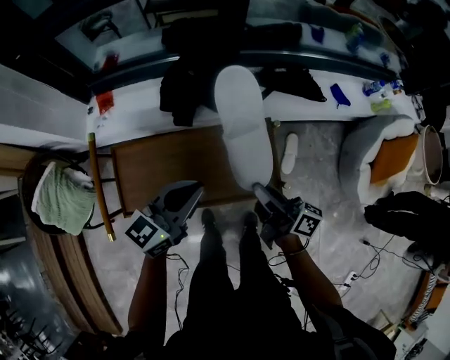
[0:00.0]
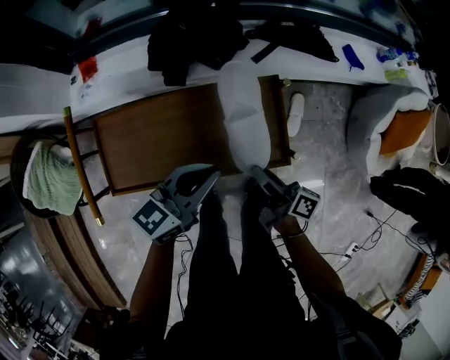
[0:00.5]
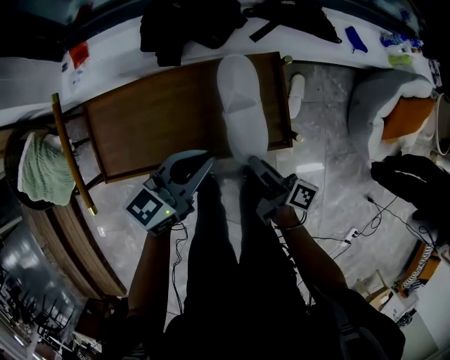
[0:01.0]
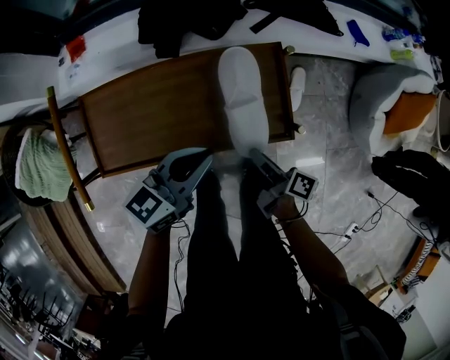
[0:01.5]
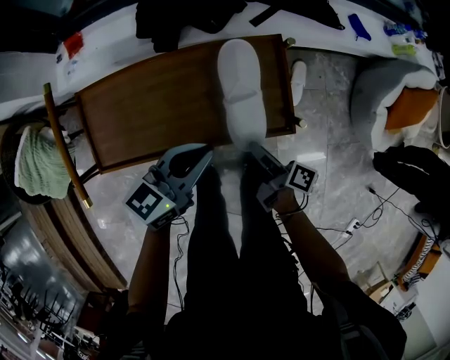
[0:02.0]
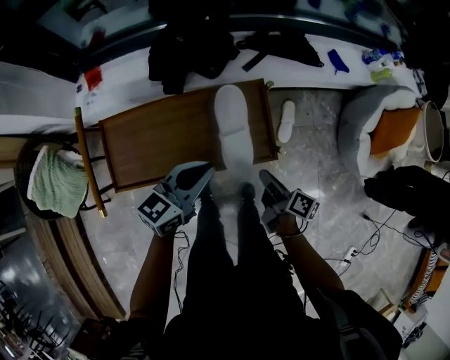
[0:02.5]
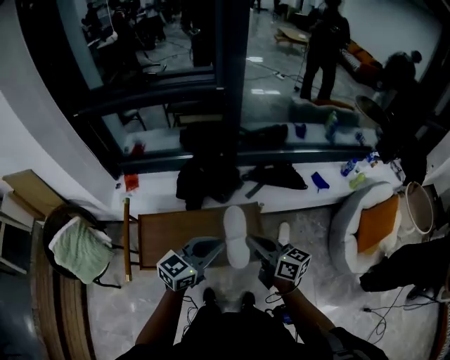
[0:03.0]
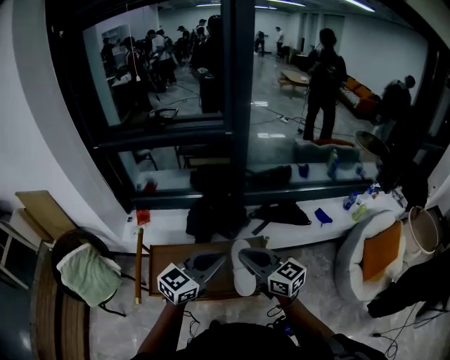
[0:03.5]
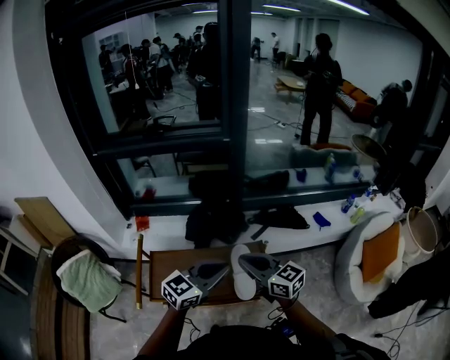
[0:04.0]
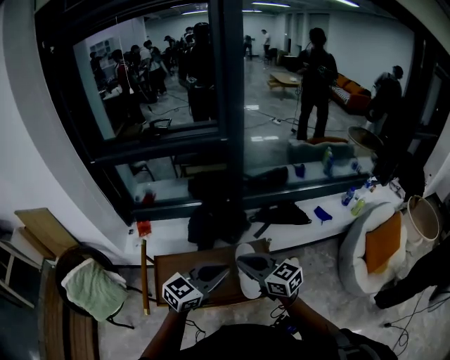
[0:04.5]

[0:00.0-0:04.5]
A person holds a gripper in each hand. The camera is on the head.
0:00.0 to 0:02.0: The right gripper is displaced downward by about 20 cm, and swivels some 30 degrees. The left gripper moves downward, approximately 10 cm.
0:02.0 to 0:04.5: Both grippers travel together upward, some 35 cm. The left gripper rotates roughly 30 degrees. Meanwhile the right gripper rotates around the line of its fingers by approximately 80 degrees, counterclockwise from behind.

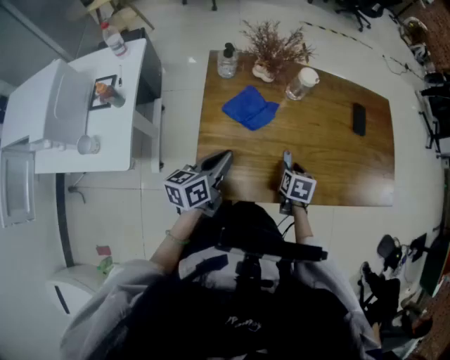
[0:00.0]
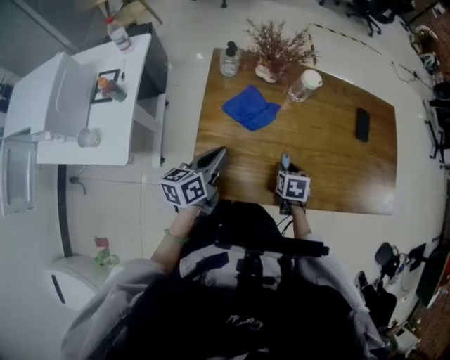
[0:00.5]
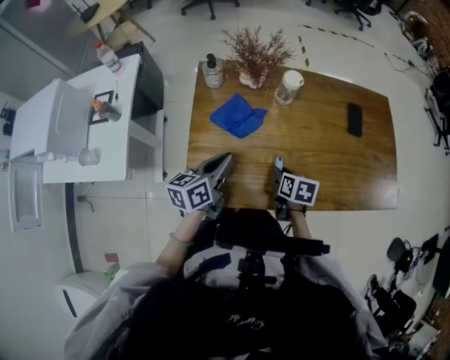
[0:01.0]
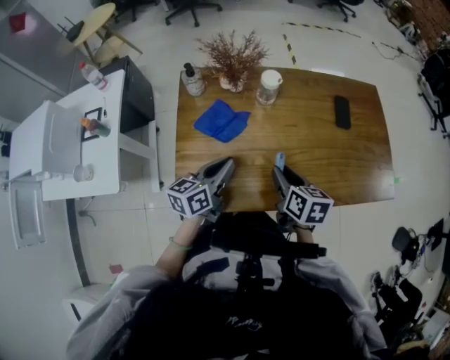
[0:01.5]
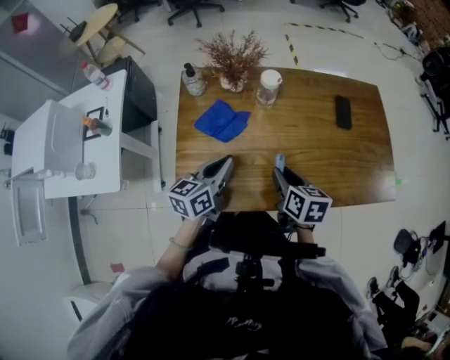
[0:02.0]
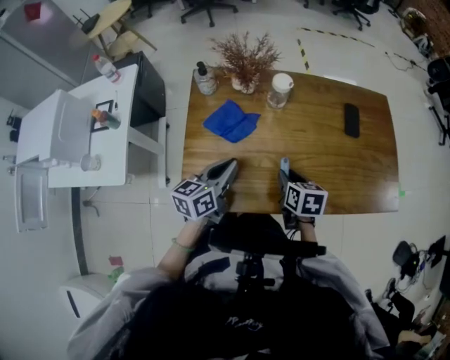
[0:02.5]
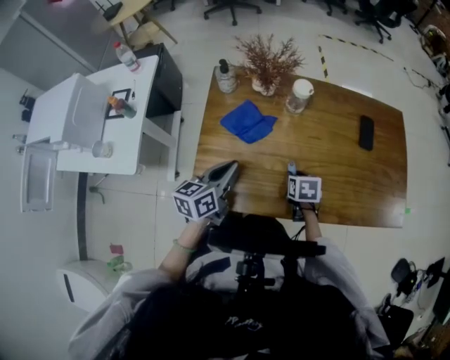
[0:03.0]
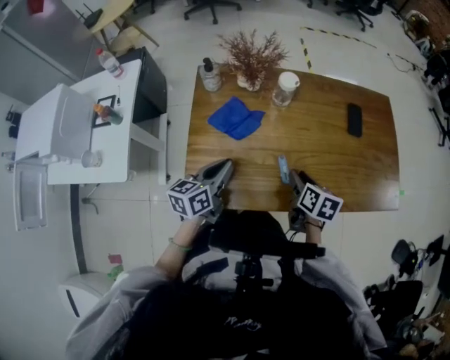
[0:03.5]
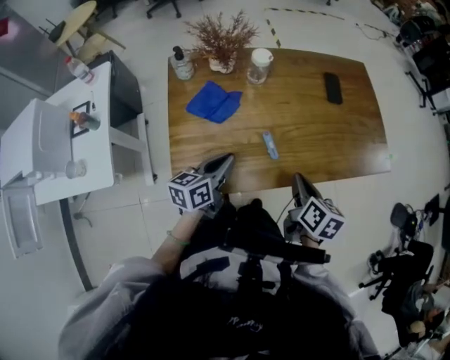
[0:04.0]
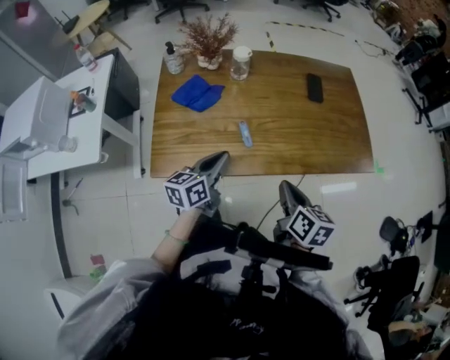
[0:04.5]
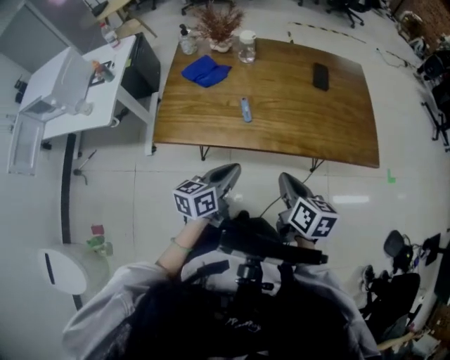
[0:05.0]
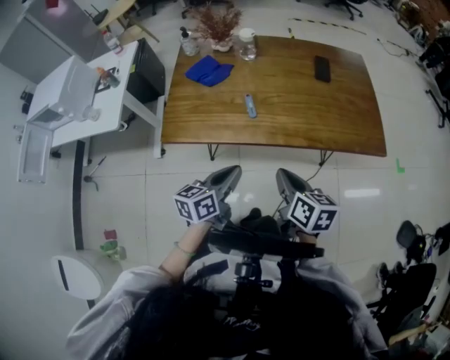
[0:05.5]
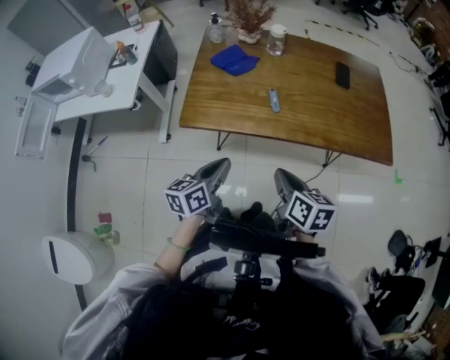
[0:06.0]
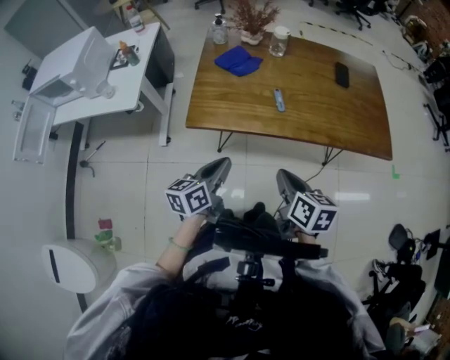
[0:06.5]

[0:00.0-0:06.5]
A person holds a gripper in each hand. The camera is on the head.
0:00.0 to 0:02.0: The right gripper shifts about 10 cm upward, and turns by some 30 degrees. The left gripper heads to the right, covering about 10 cm.
0:02.0 to 0:04.5: Both grippers move backward and to the right, about 15 cm. The right gripper closes up.
0:04.5 to 0:06.5: Both grippers move backward and to the left, roughly 20 cm.

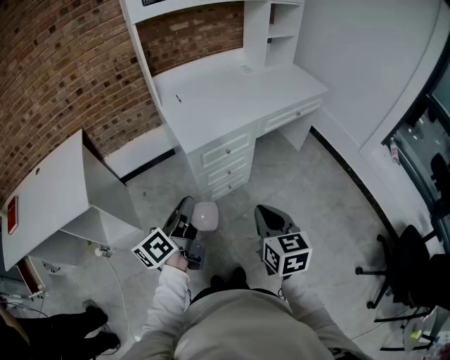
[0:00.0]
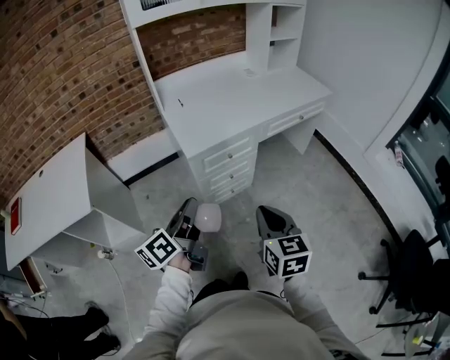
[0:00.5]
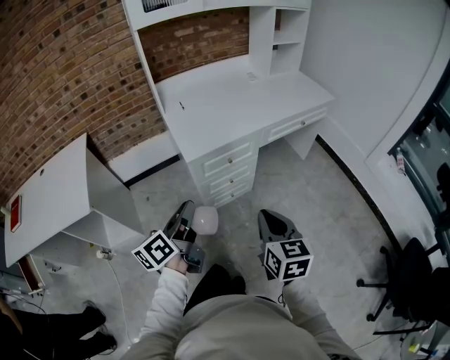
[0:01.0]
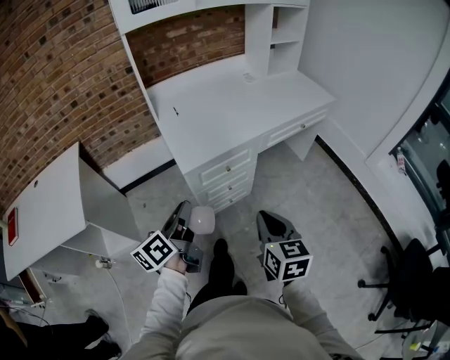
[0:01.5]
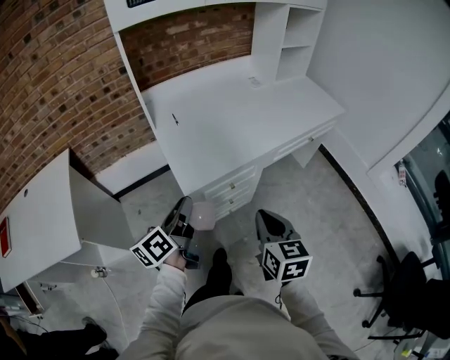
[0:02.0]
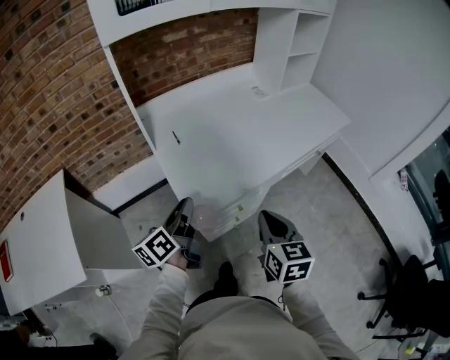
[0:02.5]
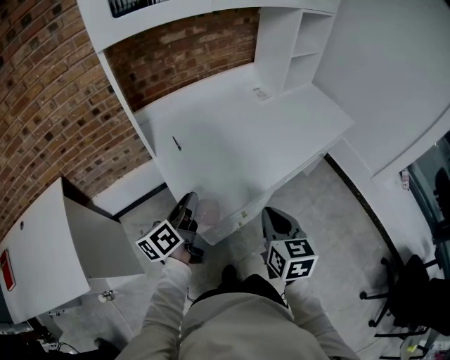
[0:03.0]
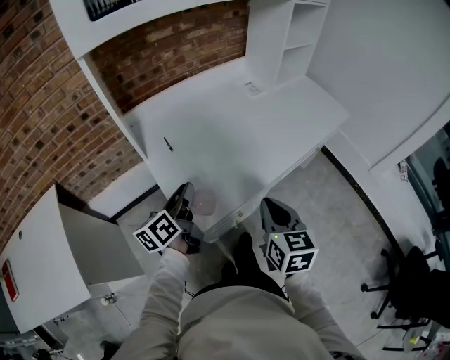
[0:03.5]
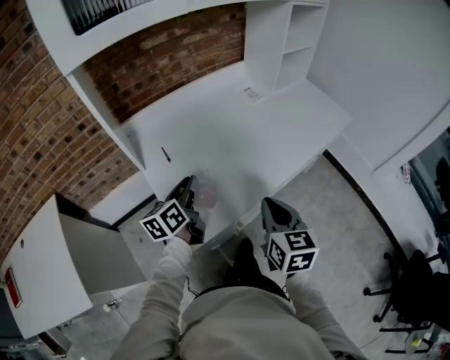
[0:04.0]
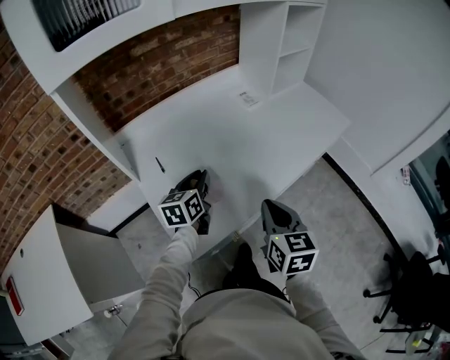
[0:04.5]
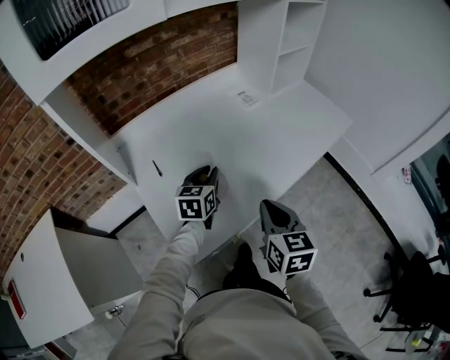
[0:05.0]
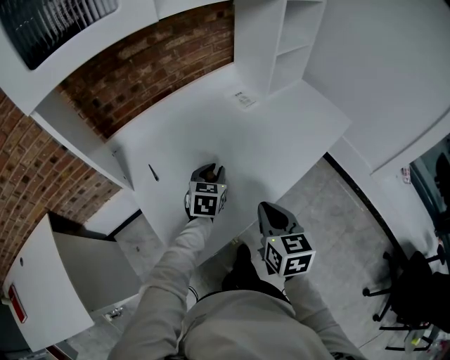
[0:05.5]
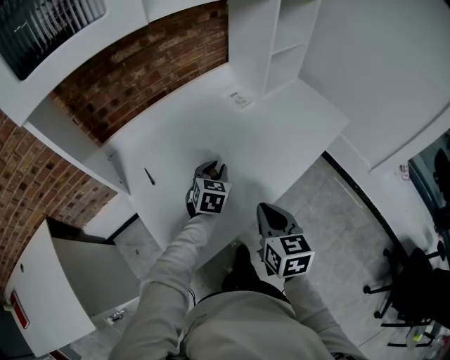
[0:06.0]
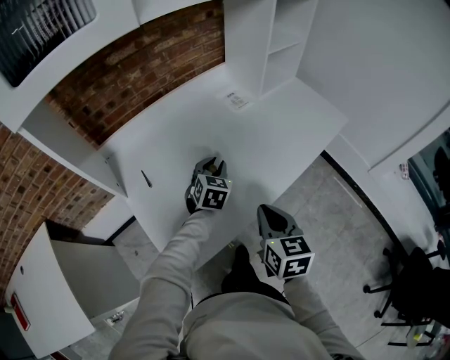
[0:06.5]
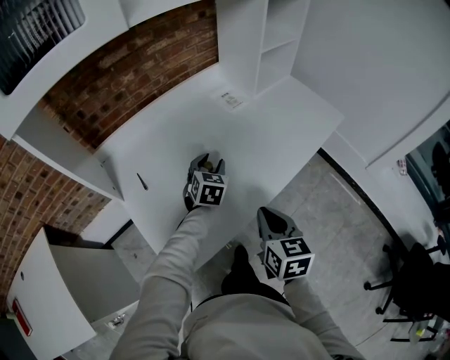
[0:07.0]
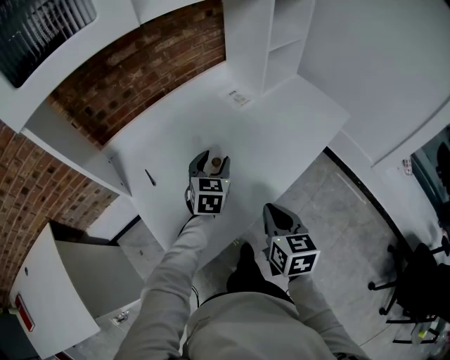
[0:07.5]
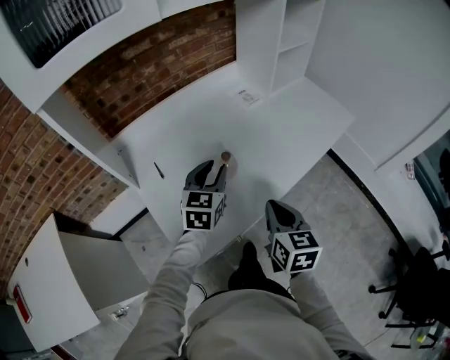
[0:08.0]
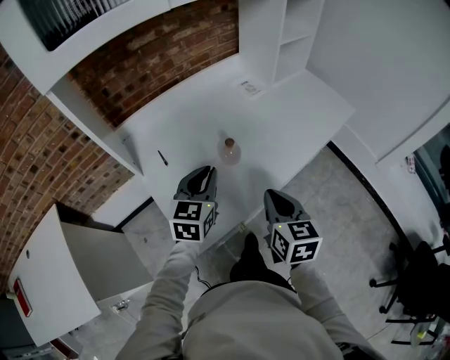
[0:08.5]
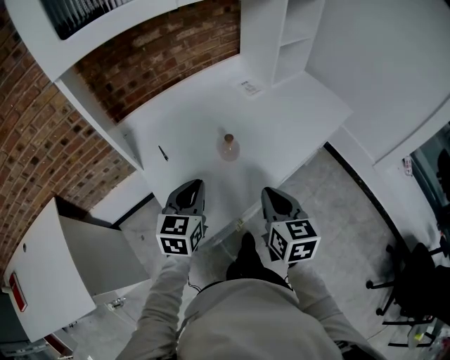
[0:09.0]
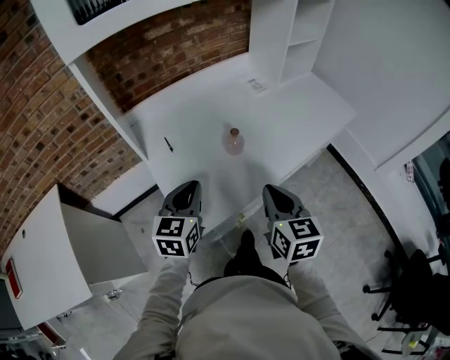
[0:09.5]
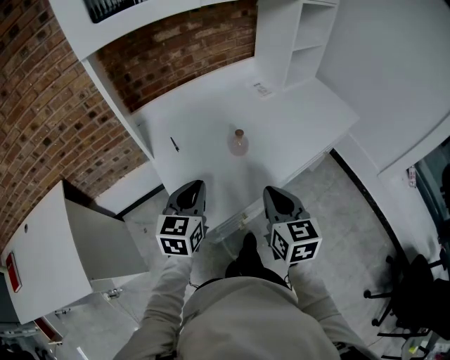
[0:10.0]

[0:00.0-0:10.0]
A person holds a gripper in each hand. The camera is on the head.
0:00.0 to 0:02.0: The grippers both shift forward by approximately 20 cm.
0:02.0 to 0:04.0: Both grippers move forward, about 25 cm.
0:04.0 to 0:06.0: The right gripper moves forward, about 10 cm; the left gripper shifts some 25 cm forward, to the right and downward, and twists approximately 50 degrees clockwise, seen from behind.
0:06.0 to 0:08.0: The left gripper heads upward and backward, covering approximately 10 cm.
0:08.0 to 0:10.0: The left gripper goes about 20 cm backward and to the left, and closes up. The right gripper goes some 5 cm backward.

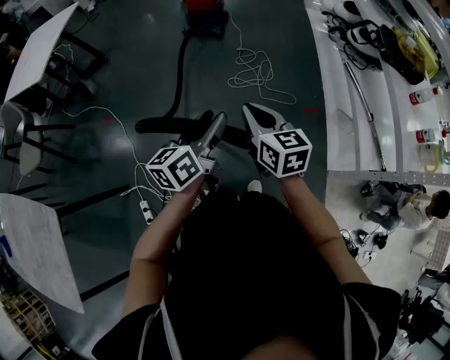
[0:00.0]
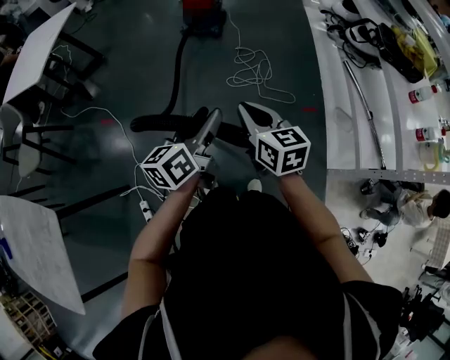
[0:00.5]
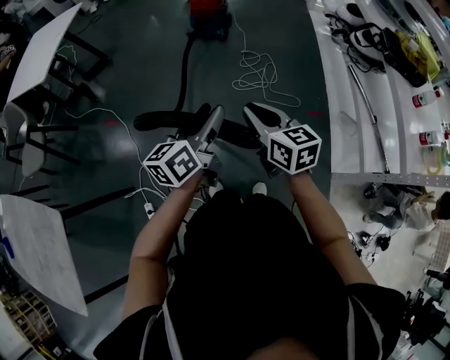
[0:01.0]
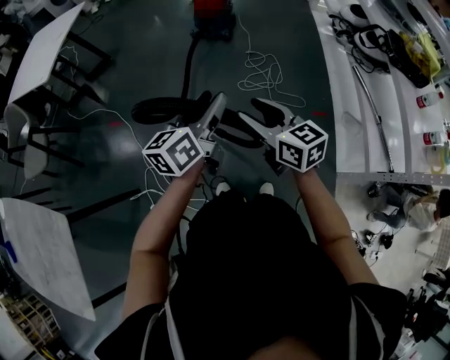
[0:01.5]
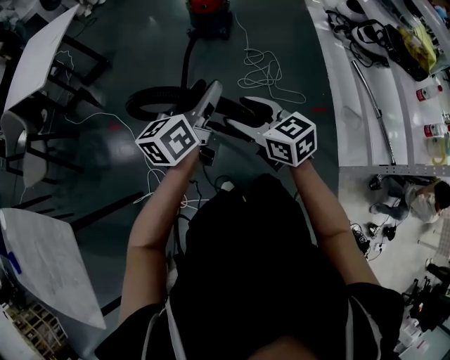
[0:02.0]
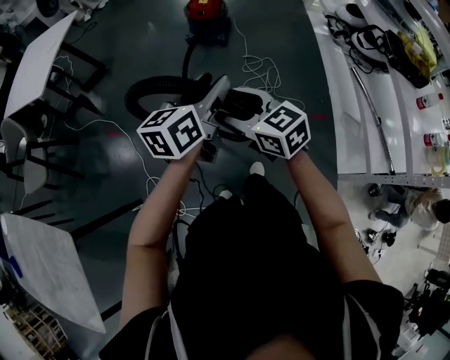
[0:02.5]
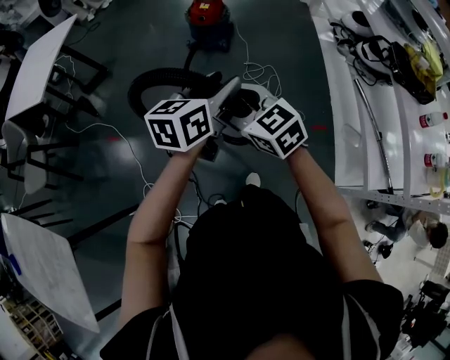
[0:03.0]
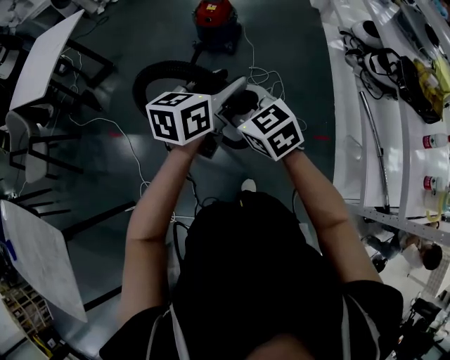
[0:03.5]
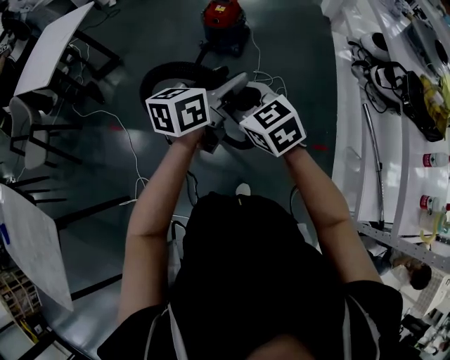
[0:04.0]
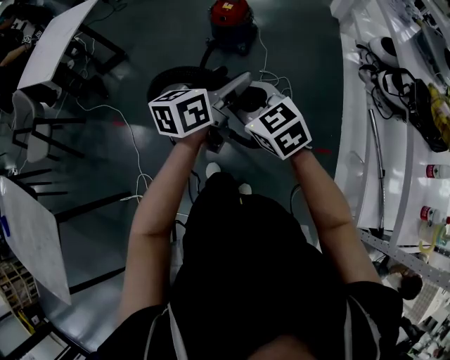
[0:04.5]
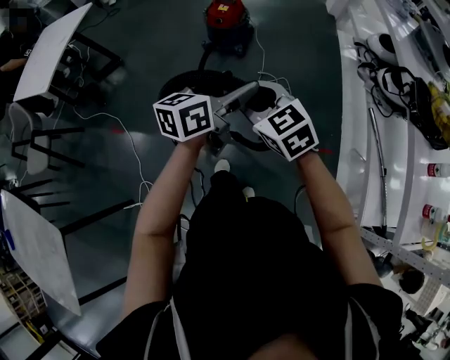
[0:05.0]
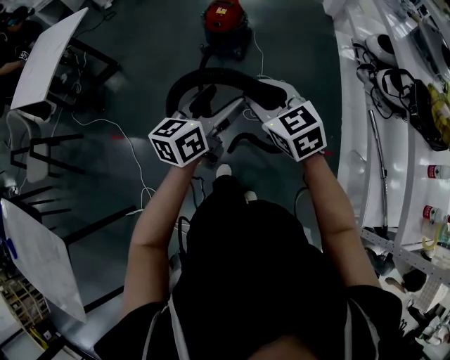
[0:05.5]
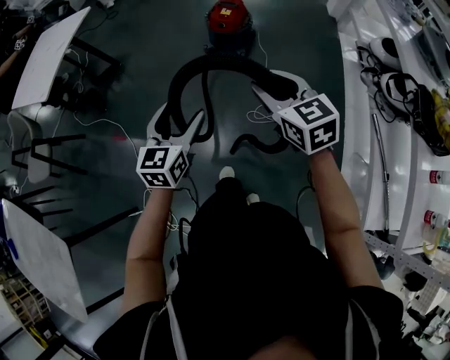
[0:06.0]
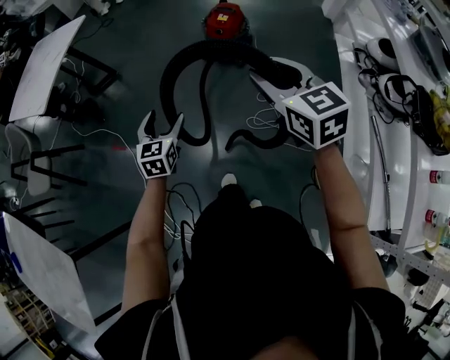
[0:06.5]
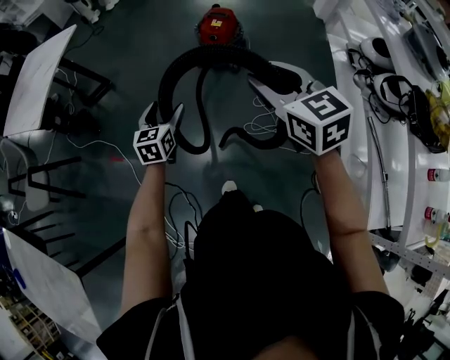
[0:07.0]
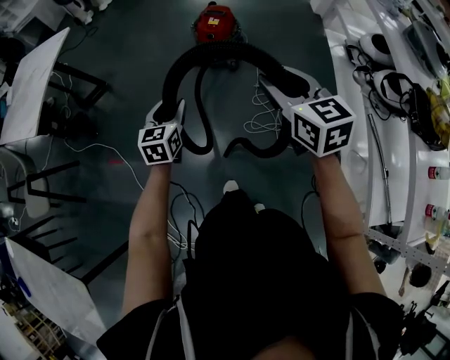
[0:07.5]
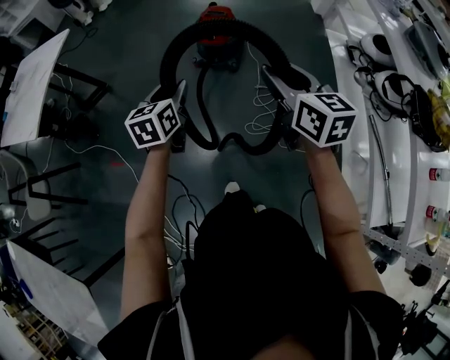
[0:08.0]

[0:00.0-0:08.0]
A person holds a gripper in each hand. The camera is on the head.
0:00.0 to 0:02.0: The right gripper heads to the left, covering some 15 cm, turns by some 20 degrees, and opens its fingers, while the left gripper travels to the left and forward by about 15 cm.
0:02.0 to 0:04.0: The left gripper is displaced to the right and forward by some 25 cm. The right gripper travels forward and to the right by approximately 25 cm.
0:04.0 to 0:06.0: The left gripper is displaced to the left by roughly 15 cm, and swivels some 30 degrees; the right gripper travels forward by some 10 cm.
0:06.0 to 0:08.0: The left gripper is displaced forward by some 20 cm. The right gripper heads forward, covering roughly 10 cm, and rotates roughly 20 degrees.
